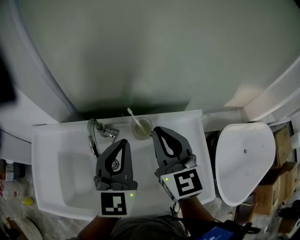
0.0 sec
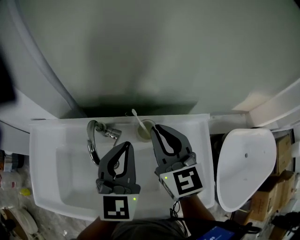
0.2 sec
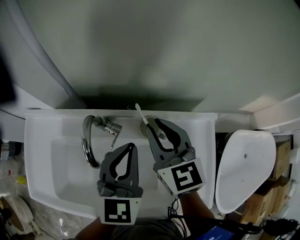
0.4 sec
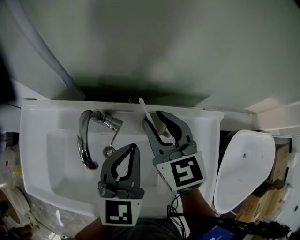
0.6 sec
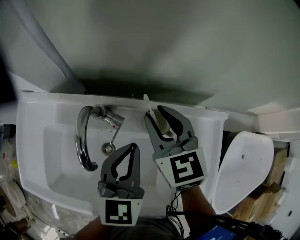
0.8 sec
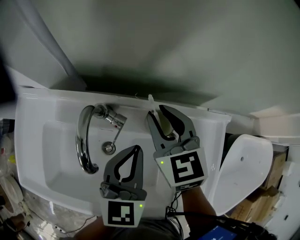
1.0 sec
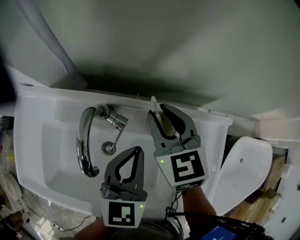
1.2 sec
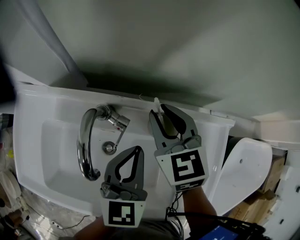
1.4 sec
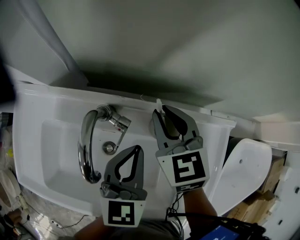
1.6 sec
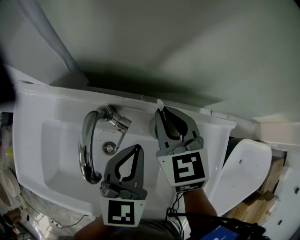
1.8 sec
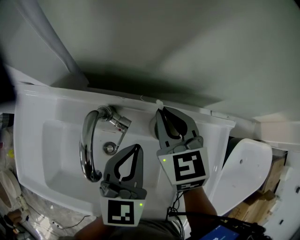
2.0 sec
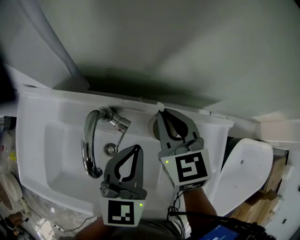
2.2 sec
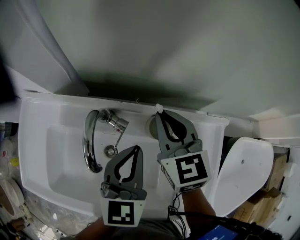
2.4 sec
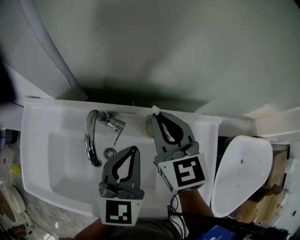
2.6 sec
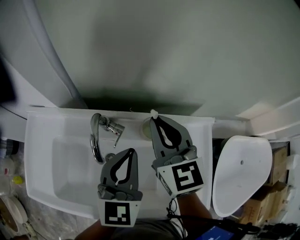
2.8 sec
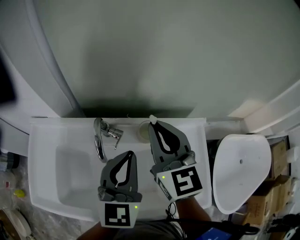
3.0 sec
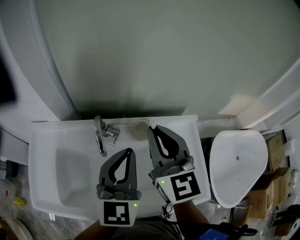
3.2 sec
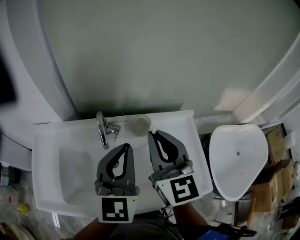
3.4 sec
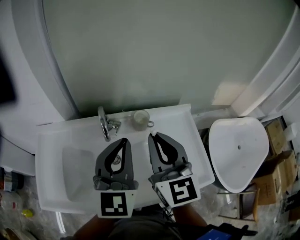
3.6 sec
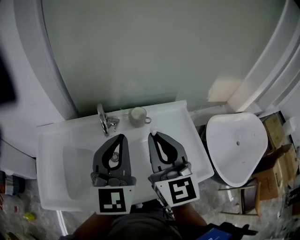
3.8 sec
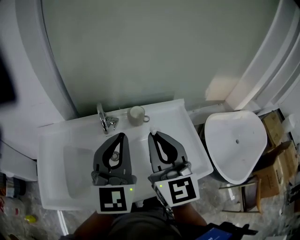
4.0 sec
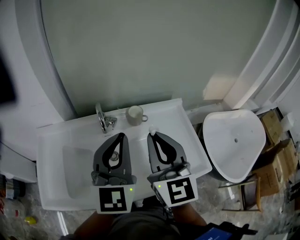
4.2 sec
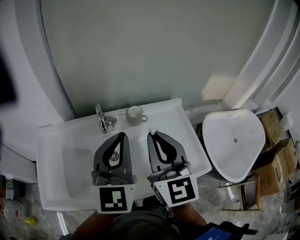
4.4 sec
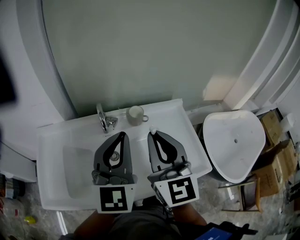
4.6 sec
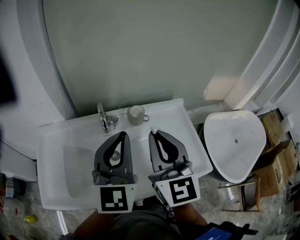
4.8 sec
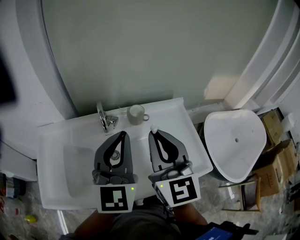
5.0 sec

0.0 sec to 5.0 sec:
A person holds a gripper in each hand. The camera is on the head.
0.0 sec to 1.6 sec: The right gripper is displaced downward and forward by approximately 20 cm, and turns by about 30 degrees, while the left gripper is displaced downward by roughly 15 cm, and rotates about 20 degrees.
1.6 sec to 3.4 sec: The two grippers go approximately 25 cm upward and backward. The right gripper points its fingers roughly 30 degrees further upward; the left gripper rotates some 30 degrees.
3.4 sec to 5.0 sec: The left gripper moves backward, approximately 5 cm; the right gripper heads backward, covering roughly 10 cm.

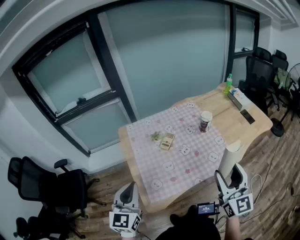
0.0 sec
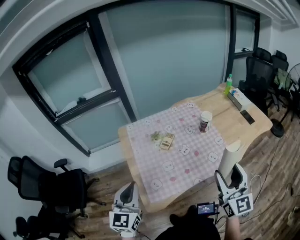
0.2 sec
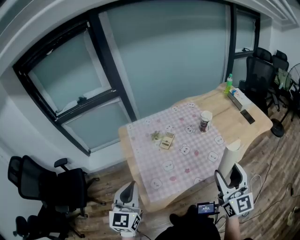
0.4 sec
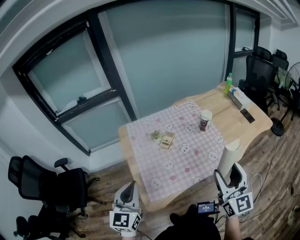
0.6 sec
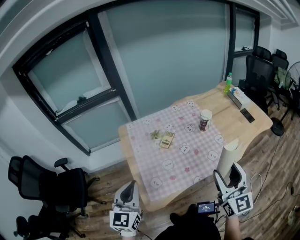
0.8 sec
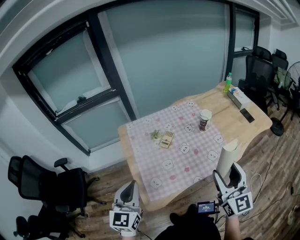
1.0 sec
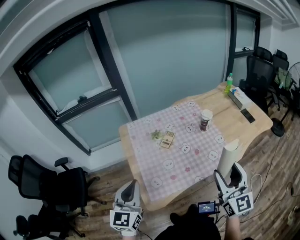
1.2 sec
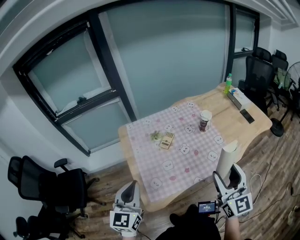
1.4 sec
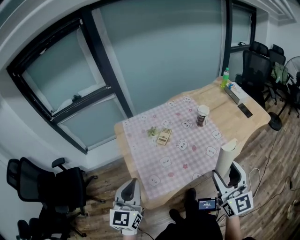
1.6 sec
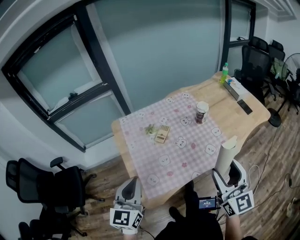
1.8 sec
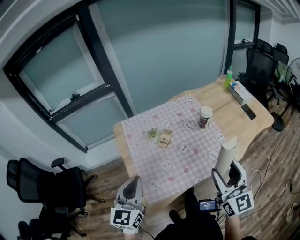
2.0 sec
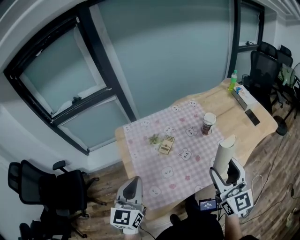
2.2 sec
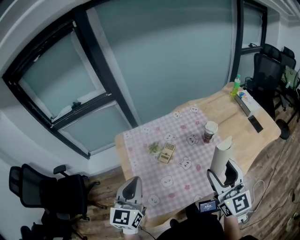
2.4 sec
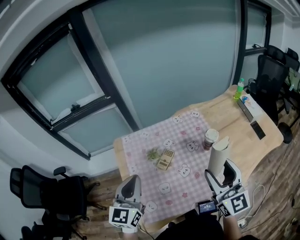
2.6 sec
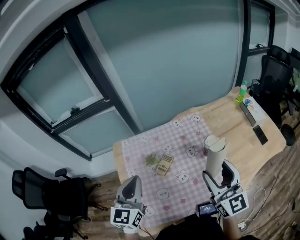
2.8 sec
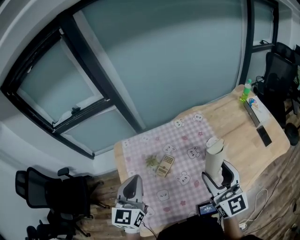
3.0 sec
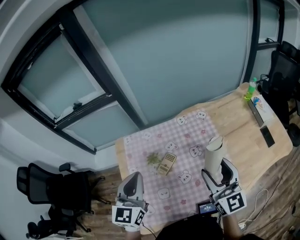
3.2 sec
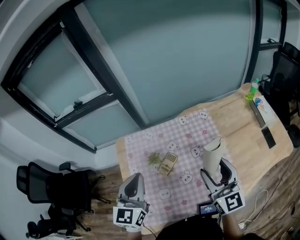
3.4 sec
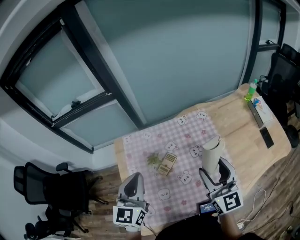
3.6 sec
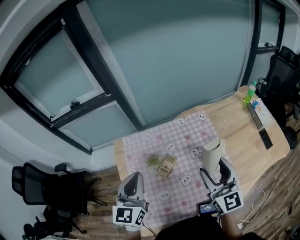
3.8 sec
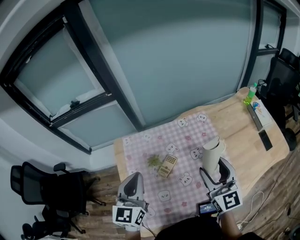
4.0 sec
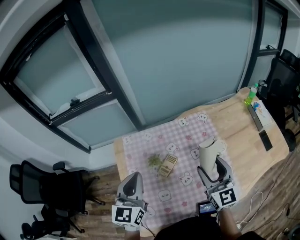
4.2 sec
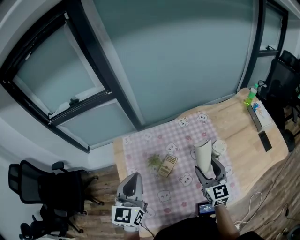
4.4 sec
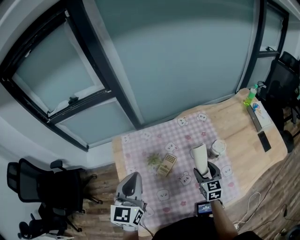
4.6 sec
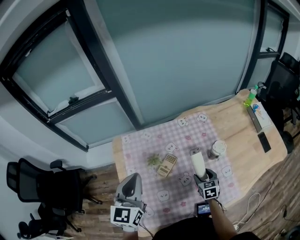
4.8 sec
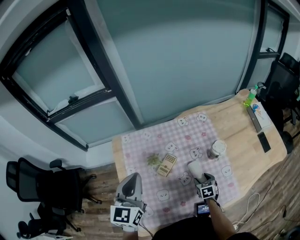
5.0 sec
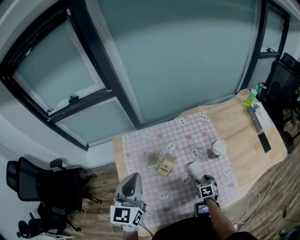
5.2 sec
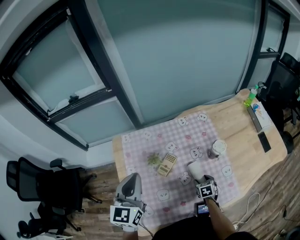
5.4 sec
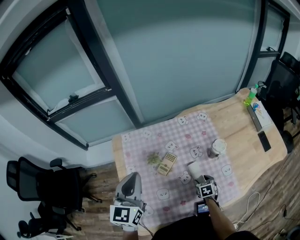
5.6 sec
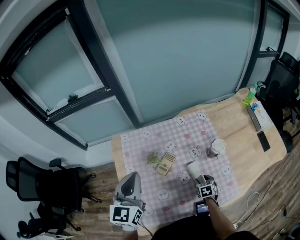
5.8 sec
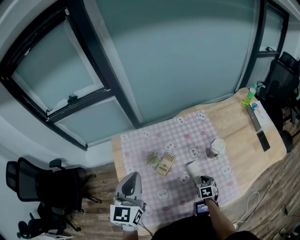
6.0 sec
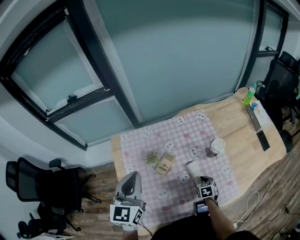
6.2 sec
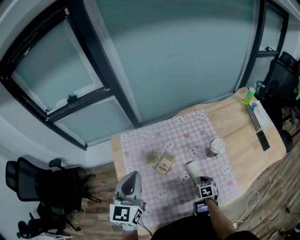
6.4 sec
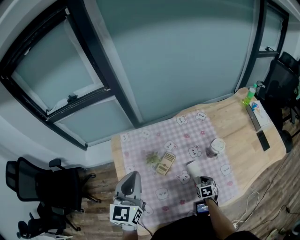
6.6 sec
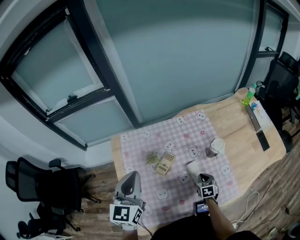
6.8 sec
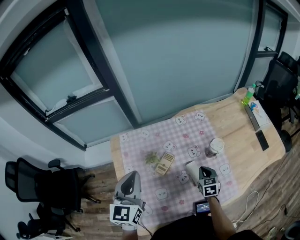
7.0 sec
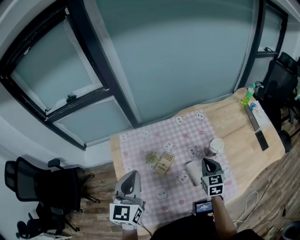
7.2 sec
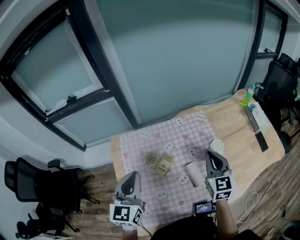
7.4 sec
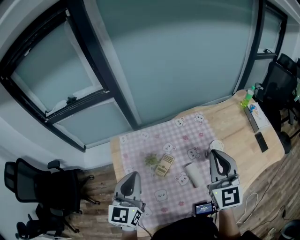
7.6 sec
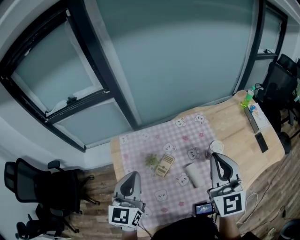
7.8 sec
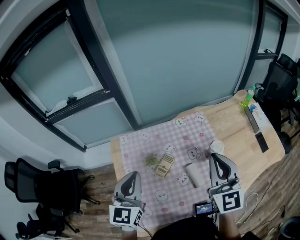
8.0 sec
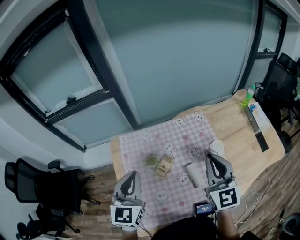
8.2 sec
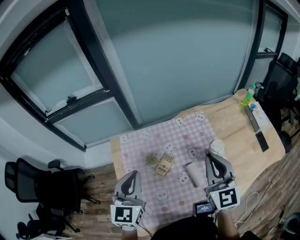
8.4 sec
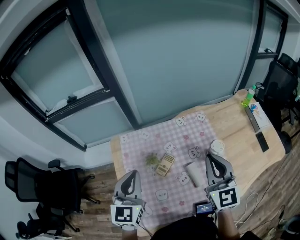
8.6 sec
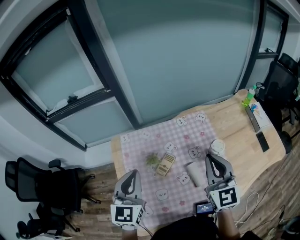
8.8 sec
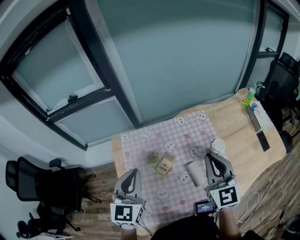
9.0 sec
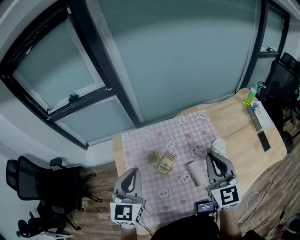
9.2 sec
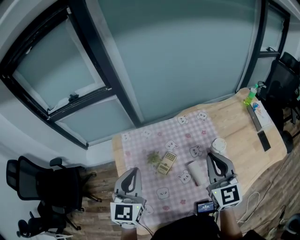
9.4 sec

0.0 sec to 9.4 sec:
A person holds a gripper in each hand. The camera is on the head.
0.0 sec to 1.6 sec: The grippers stay close to where they were, moving slightly.
1.6 sec to 3.2 sec: The two grippers go approximately 30 cm forward.
3.2 sec to 4.8 sec: The right gripper travels downward by roughly 30 cm, and angles its fingers downward, by roughly 50 degrees. Meanwhile the left gripper is displaced to the left by roughly 5 cm.
4.8 sec to 6.2 sec: The right gripper moves downward, approximately 5 cm, and closes up.
6.2 sec to 7.8 sec: The right gripper goes some 50 cm upward, and angles its fingers upward, by about 60 degrees.
7.8 sec to 9.4 sec: The right gripper moves downward, roughly 5 cm.

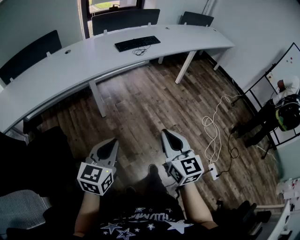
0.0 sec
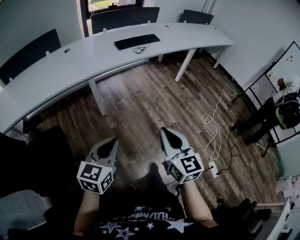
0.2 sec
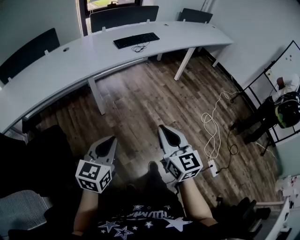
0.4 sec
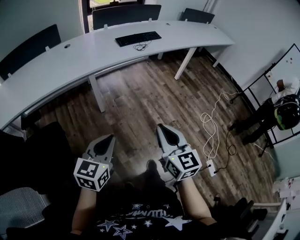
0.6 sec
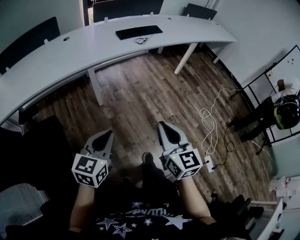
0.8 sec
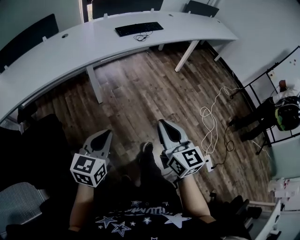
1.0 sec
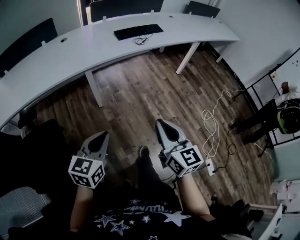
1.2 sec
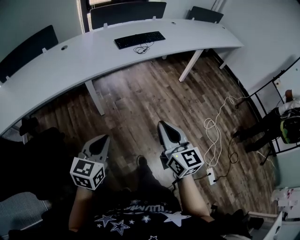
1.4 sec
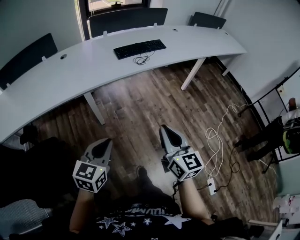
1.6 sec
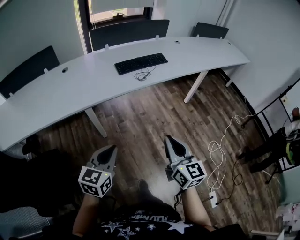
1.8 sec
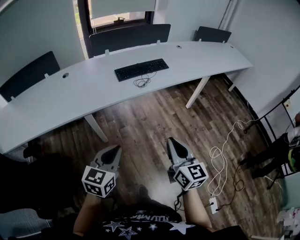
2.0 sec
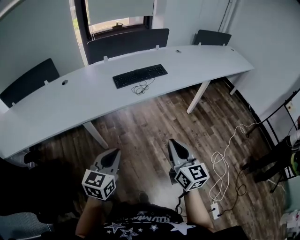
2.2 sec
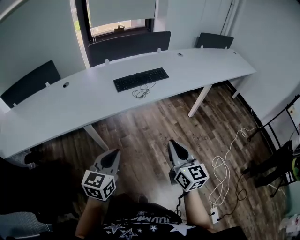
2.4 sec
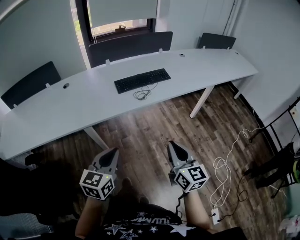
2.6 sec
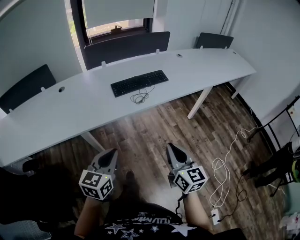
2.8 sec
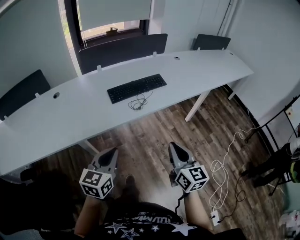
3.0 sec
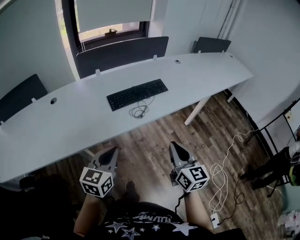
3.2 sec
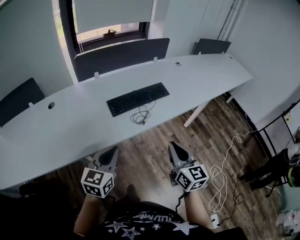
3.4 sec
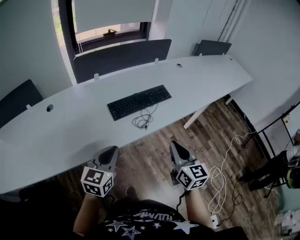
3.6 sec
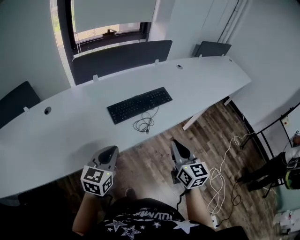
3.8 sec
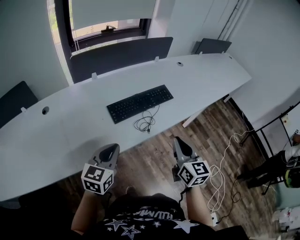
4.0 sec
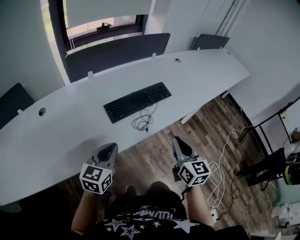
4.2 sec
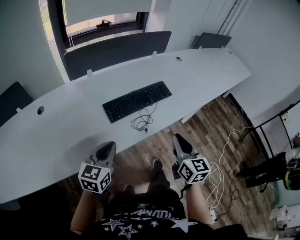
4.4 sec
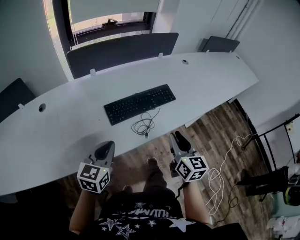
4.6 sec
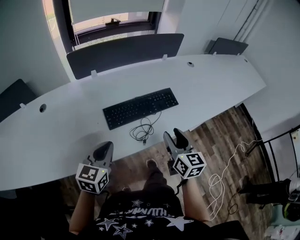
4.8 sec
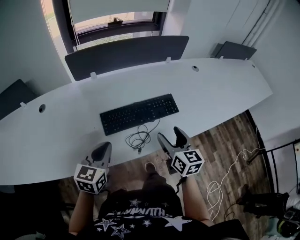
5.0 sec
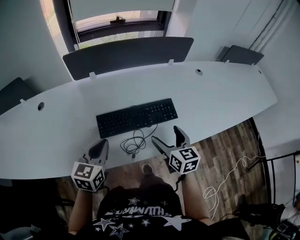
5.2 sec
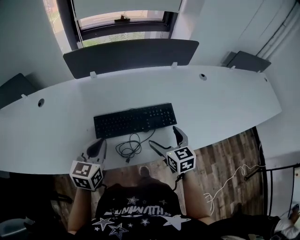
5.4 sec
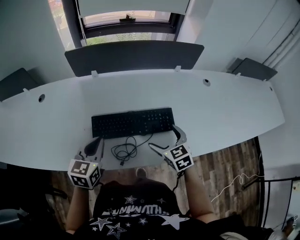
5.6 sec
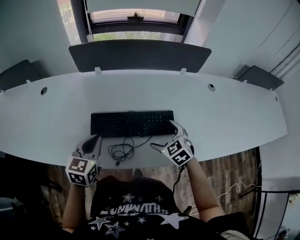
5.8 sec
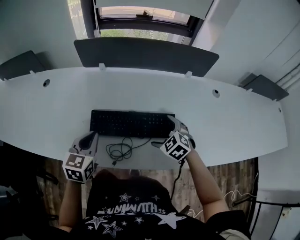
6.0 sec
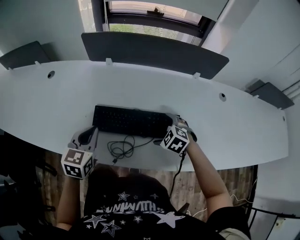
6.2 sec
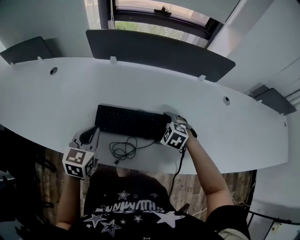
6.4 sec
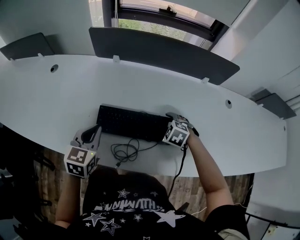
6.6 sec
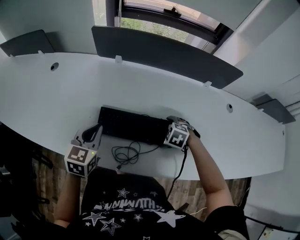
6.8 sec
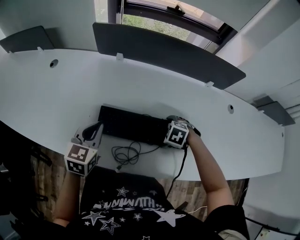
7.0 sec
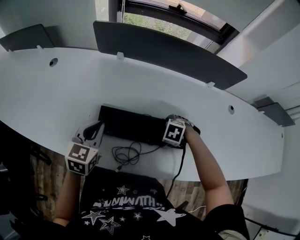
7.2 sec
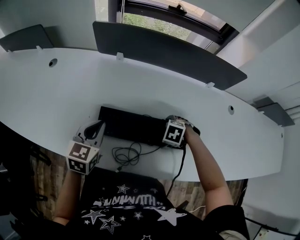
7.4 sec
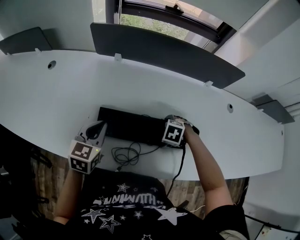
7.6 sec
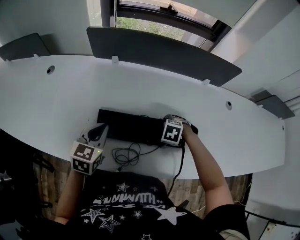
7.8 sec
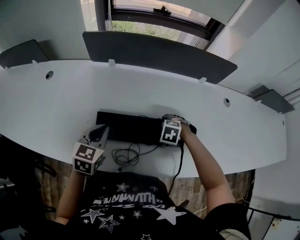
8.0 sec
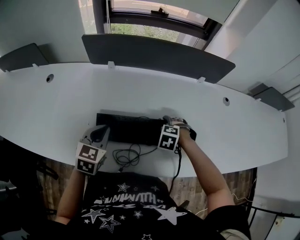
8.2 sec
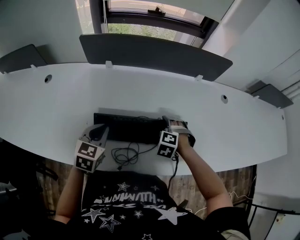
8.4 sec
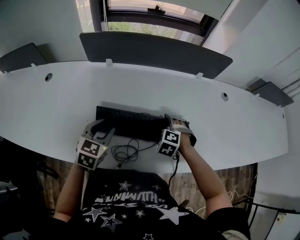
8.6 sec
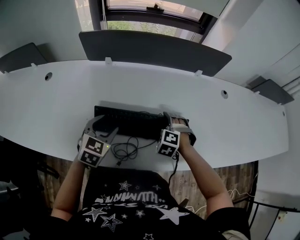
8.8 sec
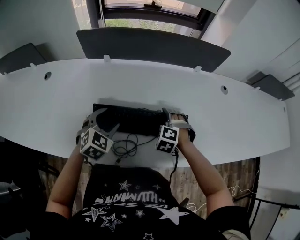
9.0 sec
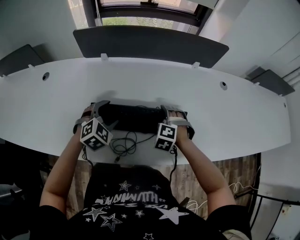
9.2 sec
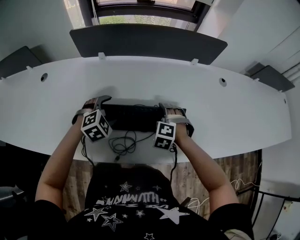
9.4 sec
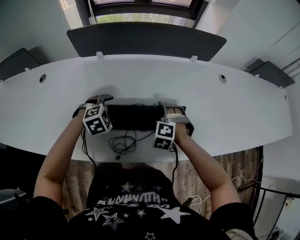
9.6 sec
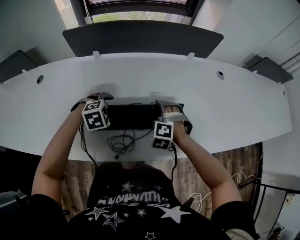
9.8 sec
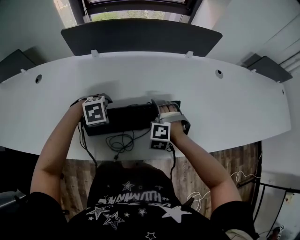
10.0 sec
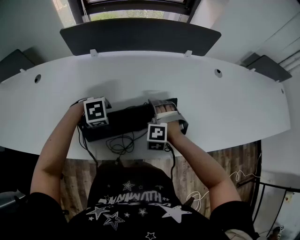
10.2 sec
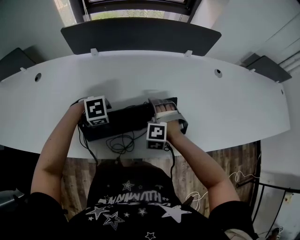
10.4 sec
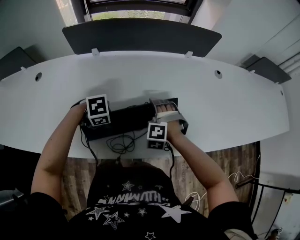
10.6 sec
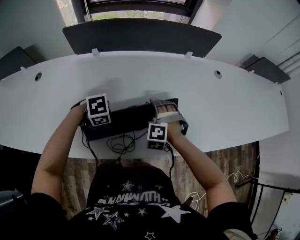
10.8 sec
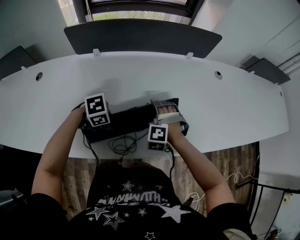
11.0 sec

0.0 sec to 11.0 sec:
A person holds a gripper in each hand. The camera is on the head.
0.0 sec to 1.6 sec: Both grippers travel together forward, some 20 cm.
1.6 sec to 3.2 sec: Both grippers move forward, about 30 cm.
3.2 sec to 4.8 sec: Both grippers move forward, about 20 cm.
4.8 sec to 6.2 sec: The right gripper changes place by about 25 cm, angles its fingers downward, by about 50 degrees, and opens up, while the left gripper shifts by some 10 cm, and changes its angle by about 30 degrees.
6.2 sec to 7.8 sec: The left gripper changes place by about 5 cm. Meanwhile the right gripper shifts roughly 5 cm downward, and turns by approximately 30 degrees.
7.8 sec to 9.4 sec: The right gripper changes its angle by about 30 degrees, while the left gripper shifts by approximately 10 cm, twists approximately 50 degrees clockwise, seen from behind, and opens.
9.4 sec to 11.0 sec: The left gripper moves approximately 10 cm, rotates some 50 degrees, and closes up.
